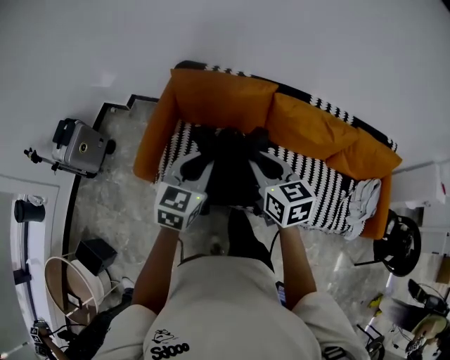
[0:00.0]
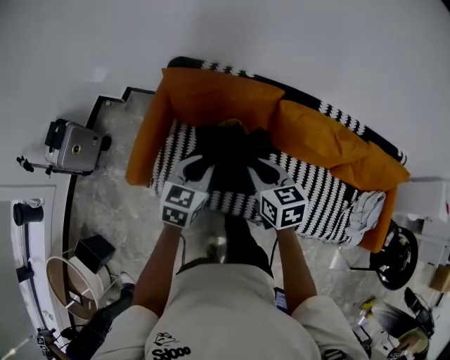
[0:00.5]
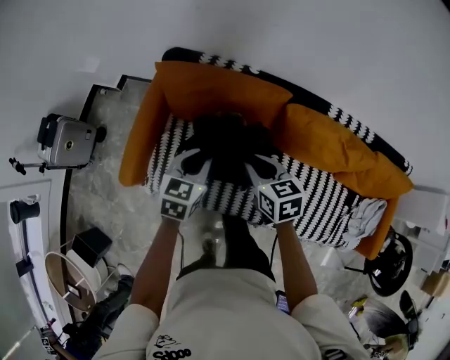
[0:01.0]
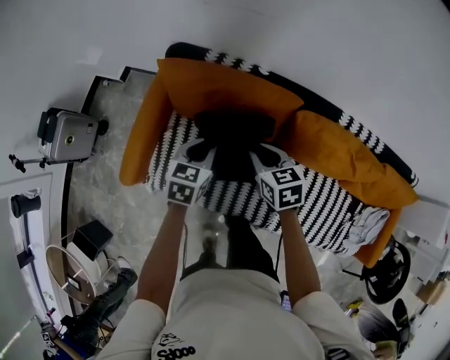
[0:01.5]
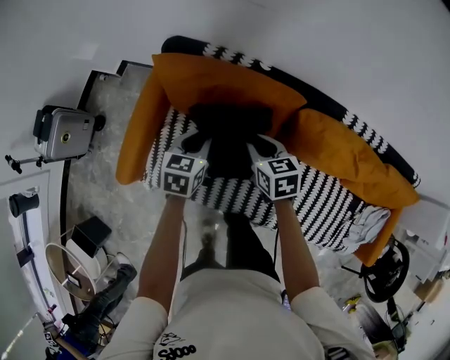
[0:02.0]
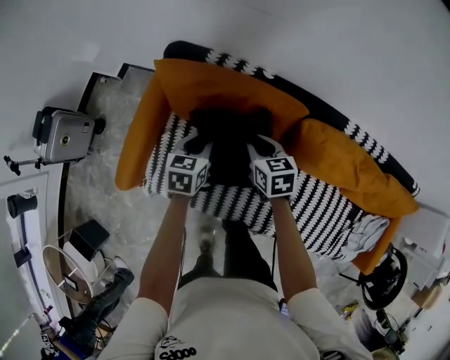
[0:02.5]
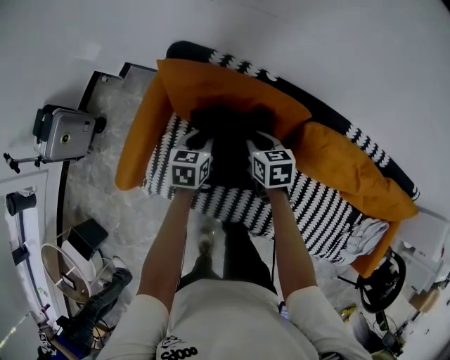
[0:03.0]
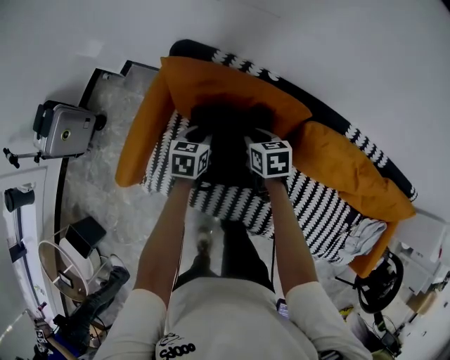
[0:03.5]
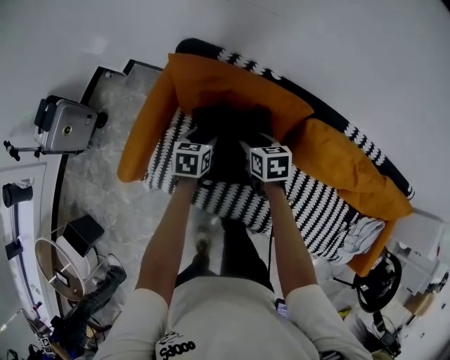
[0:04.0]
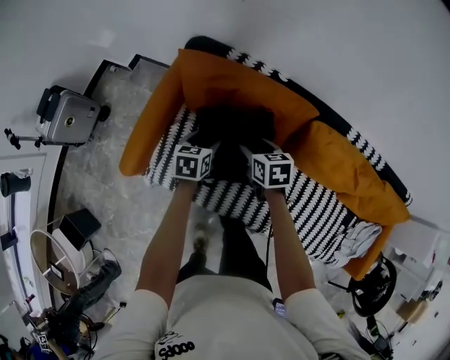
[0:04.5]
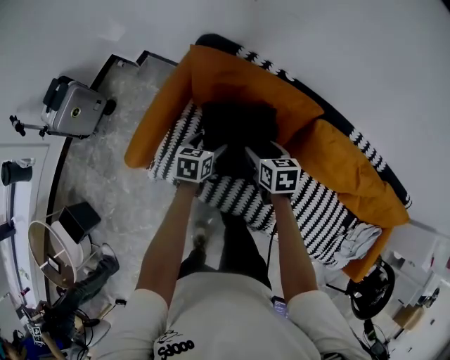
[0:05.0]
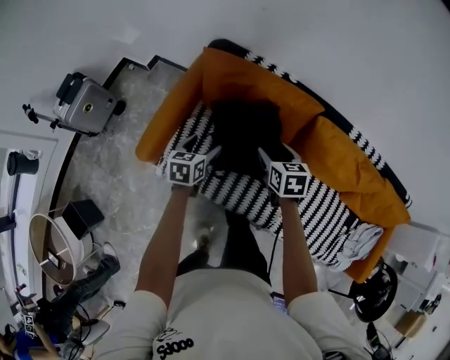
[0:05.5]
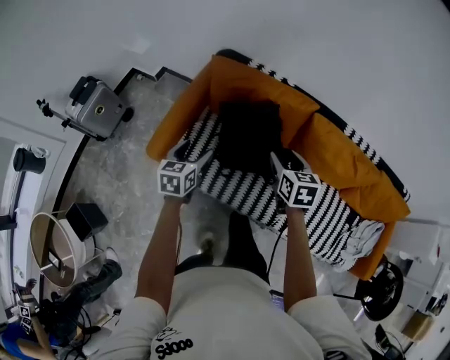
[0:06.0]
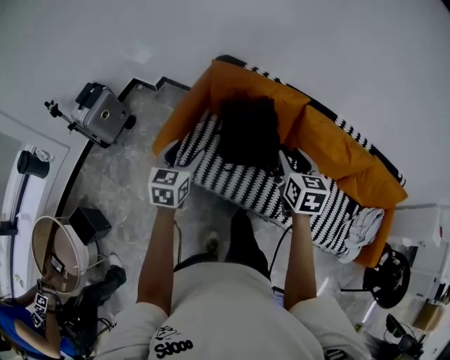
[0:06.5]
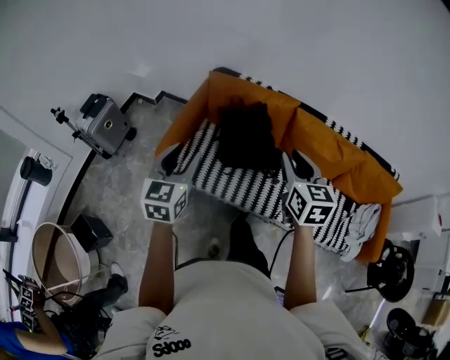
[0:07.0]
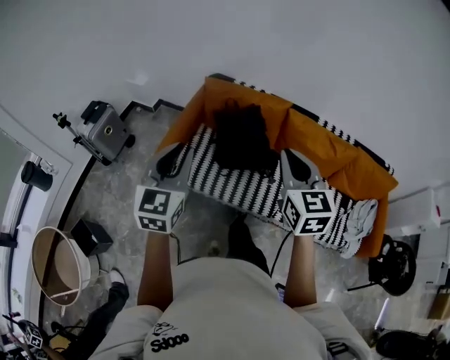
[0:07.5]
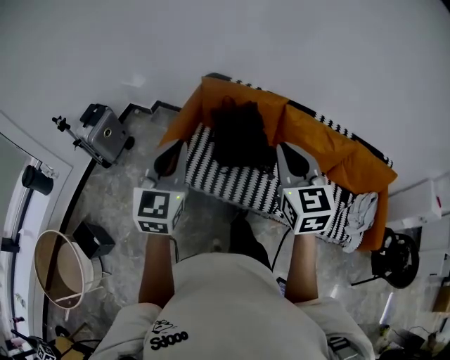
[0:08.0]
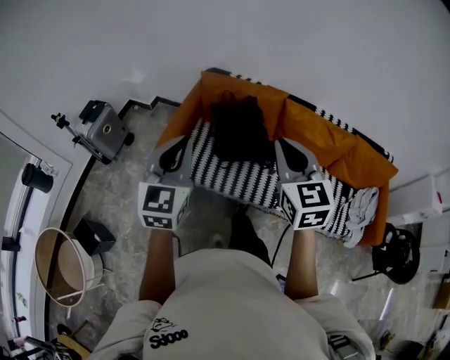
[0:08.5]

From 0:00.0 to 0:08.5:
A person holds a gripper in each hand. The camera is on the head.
From 0:00.0 to 0:02.0: Both grippers move forward and downward, approximately 35 cm. The left gripper swivels approximately 30 degrees.
From 0:02.0 to 0:04.0: The left gripper travels downward by some 5 cm, and opens its fingers. The right gripper changes place by approximately 5 cm, and opens up.
From 0:04.0 to 0:06.5: The left gripper is displaced backward, upward and to the left by some 40 cm, and changes its angle by approximately 30 degrees. Meanwhile the right gripper shifts about 35 cm backward and upward, and rotates about 30 degrees.
From 0:06.5 to 0:08.5: The left gripper heads upward and backward, covering approximately 25 cm, turns by some 30 degrees, and closes up. The right gripper goes roughly 25 cm backward and upward, changes its angle by about 20 degrees, and closes up.

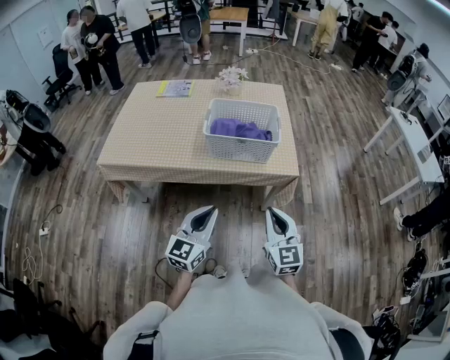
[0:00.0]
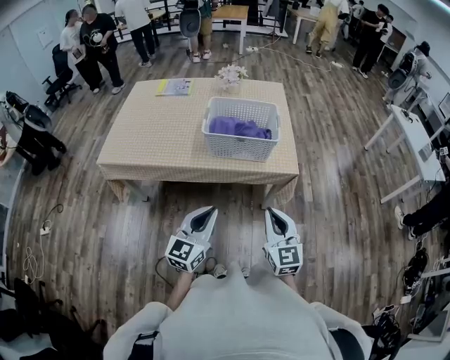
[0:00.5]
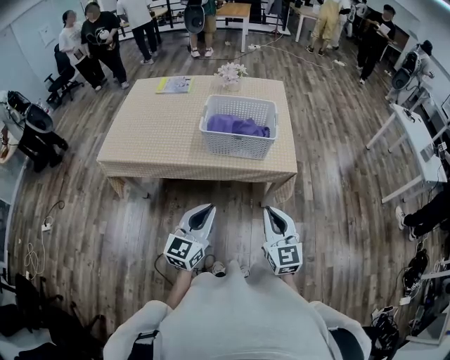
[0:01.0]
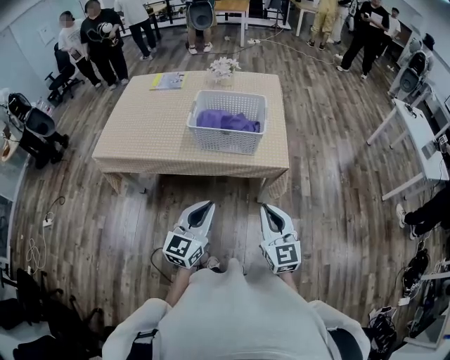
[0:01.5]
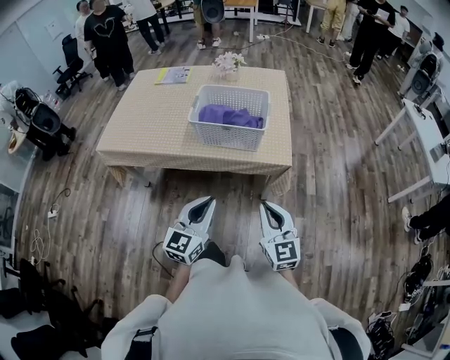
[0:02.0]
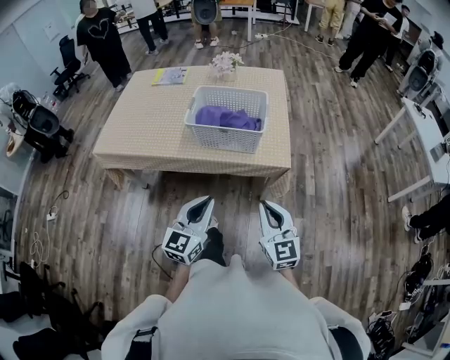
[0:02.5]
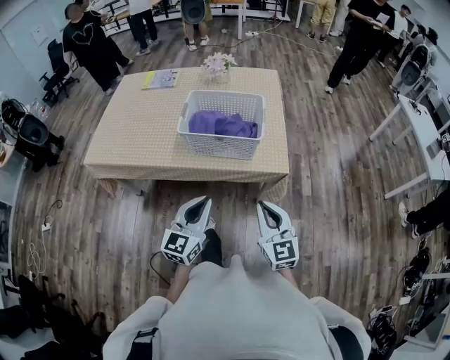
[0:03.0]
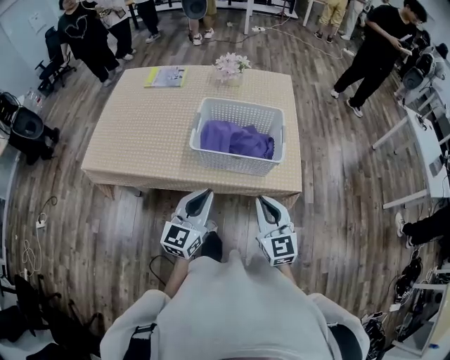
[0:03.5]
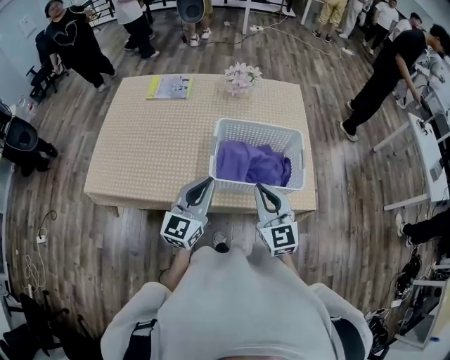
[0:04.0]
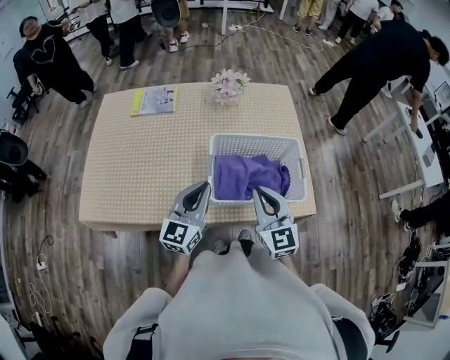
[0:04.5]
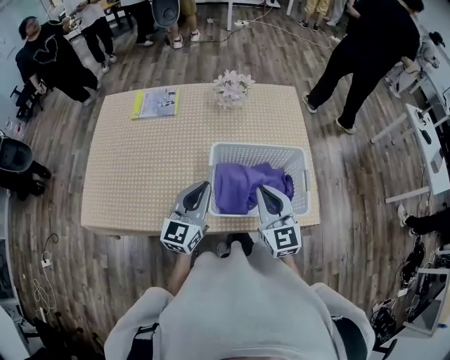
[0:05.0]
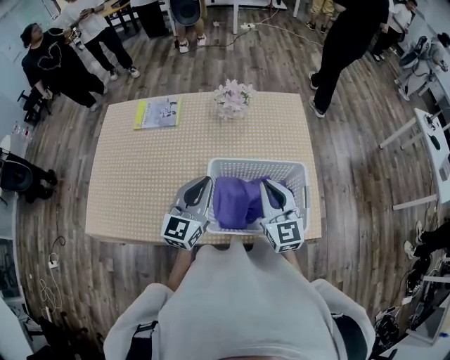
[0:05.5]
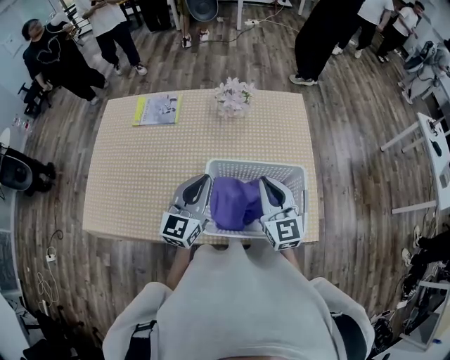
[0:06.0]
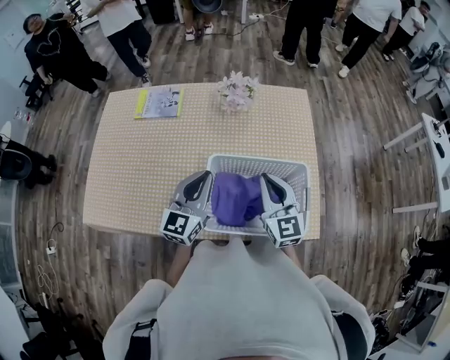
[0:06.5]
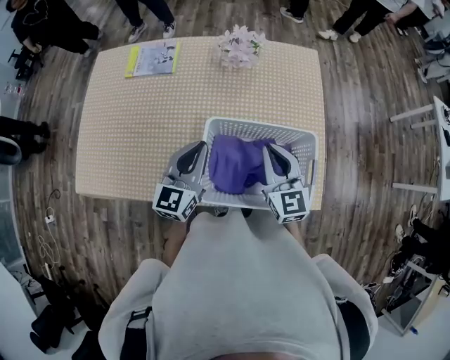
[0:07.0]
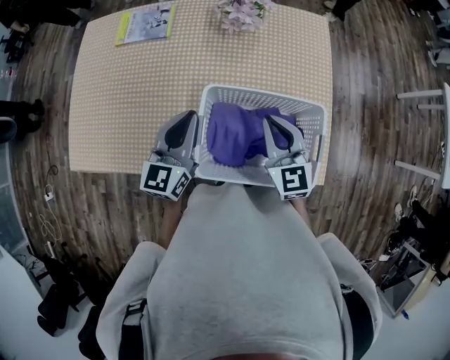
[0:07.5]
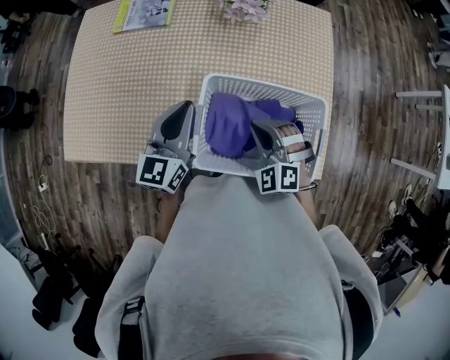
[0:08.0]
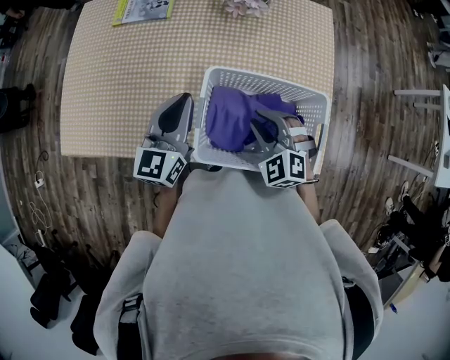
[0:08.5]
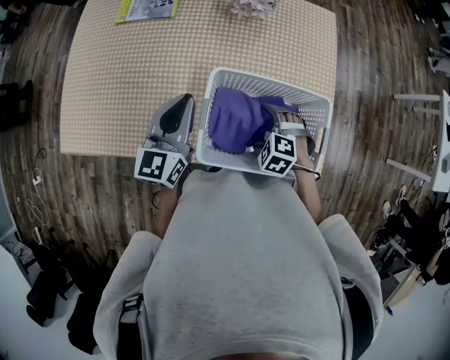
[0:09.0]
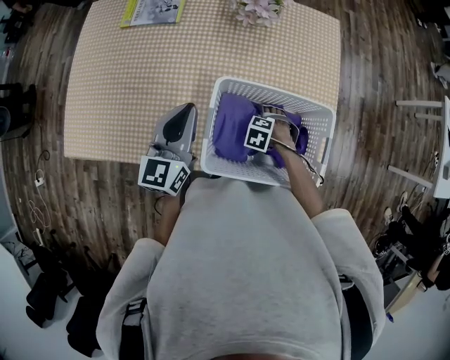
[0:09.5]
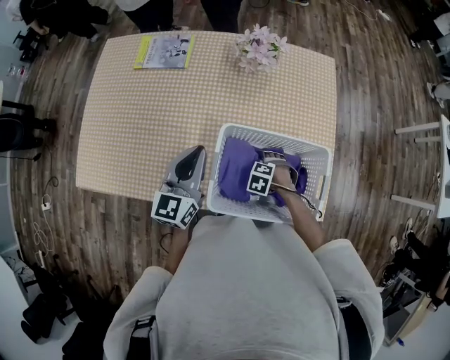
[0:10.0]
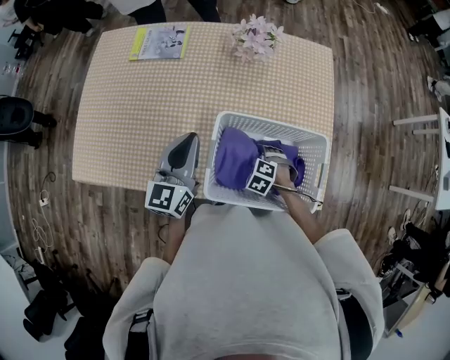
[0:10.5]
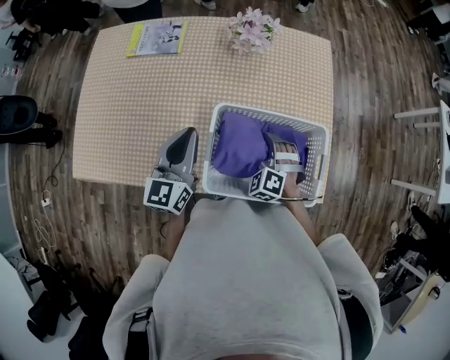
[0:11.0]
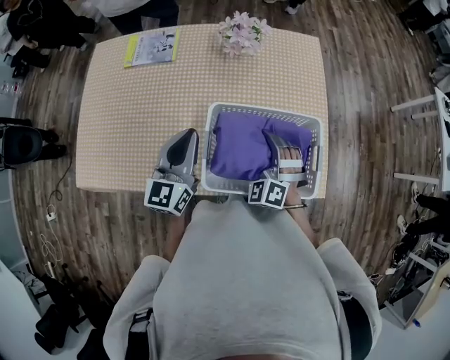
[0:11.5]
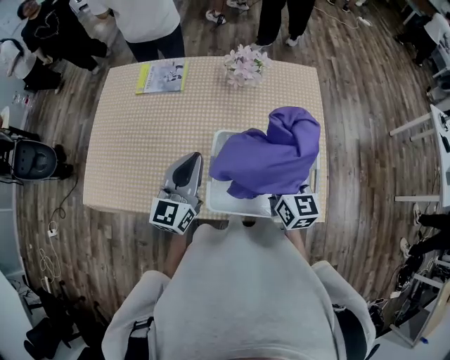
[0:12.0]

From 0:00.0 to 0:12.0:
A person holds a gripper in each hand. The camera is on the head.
From 0:00.0 to 0:02.0: Both grippers move to the right, about 10 cm.
From 0:02.0 to 0:04.0: Both grippers move forward and to the left, about 35 cm.
From 0:04.0 to 0:06.0: The grippers both shift forward by some 20 cm.
From 0:06.0 to 0:08.0: The right gripper is displaced downward by about 10 cm, and rolls counterclockwise, seen from behind, by about 50 degrees; the left gripper moves some 5 cm.
From 0:08.0 to 0:10.0: The right gripper travels downward by approximately 20 cm, points its fingers some 50 degrees further downward, and opens up.
From 0:10.0 to 0:12.0: The right gripper travels upward by approximately 30 cm, tips its fingers upward by about 70 degrees, and closes. Meanwhile the left gripper ends up approximately 5 cm from where it was.

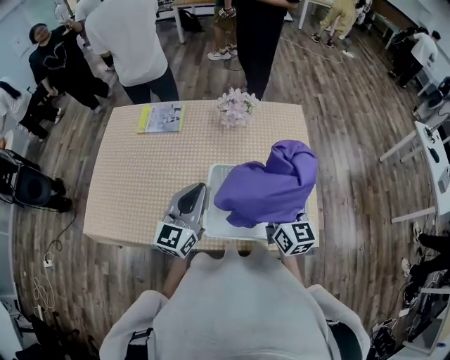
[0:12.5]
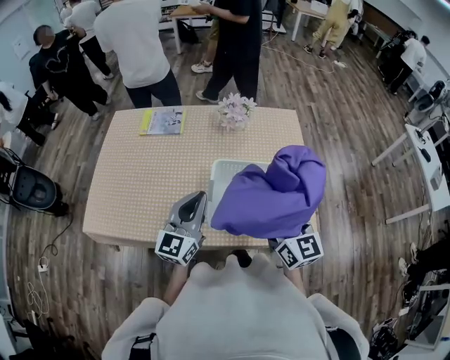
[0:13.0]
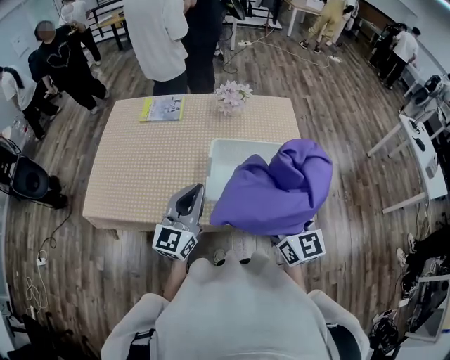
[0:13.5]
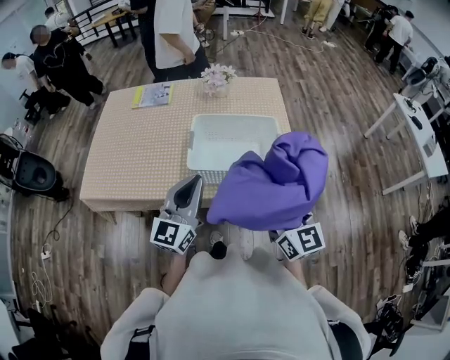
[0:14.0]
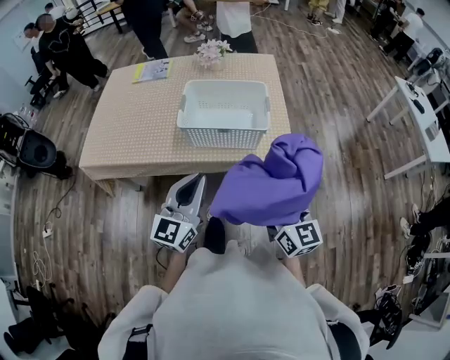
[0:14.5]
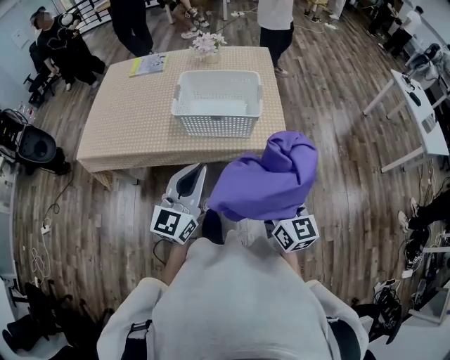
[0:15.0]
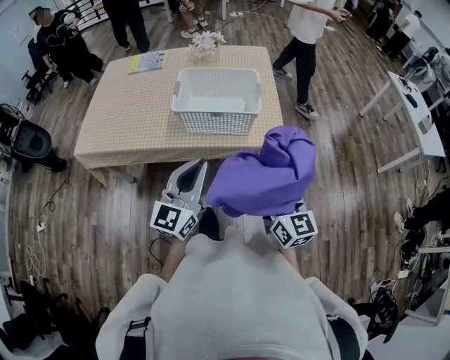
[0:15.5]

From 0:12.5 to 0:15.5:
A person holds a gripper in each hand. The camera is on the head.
From 0:12.5 to 0:14.0: Both grippers move backward, roughly 25 cm.
From 0:14.0 to 0:15.5: The right gripper shifts about 20 cm backward, downward and to the right. The left gripper moves backward and to the right, some 20 cm.

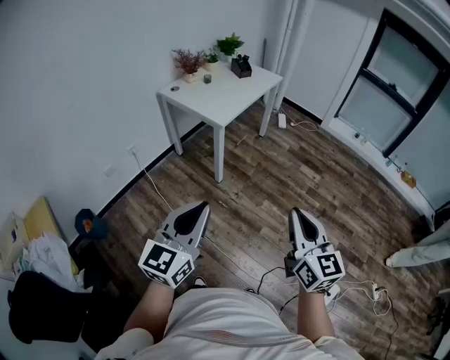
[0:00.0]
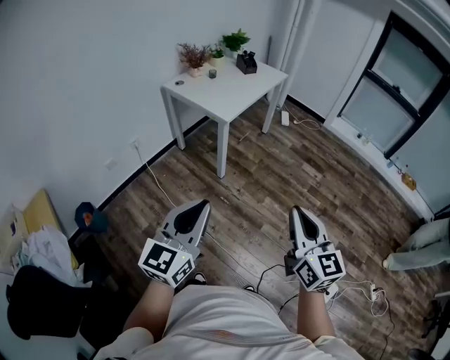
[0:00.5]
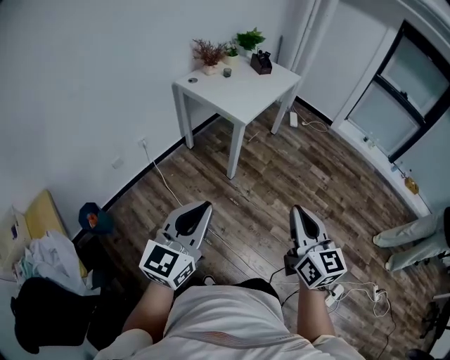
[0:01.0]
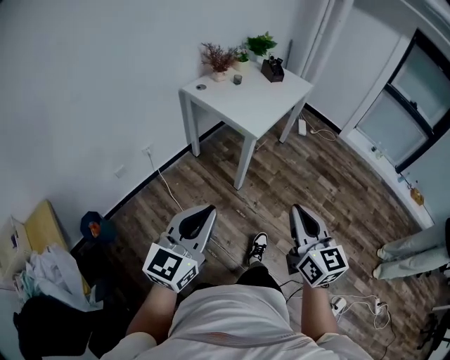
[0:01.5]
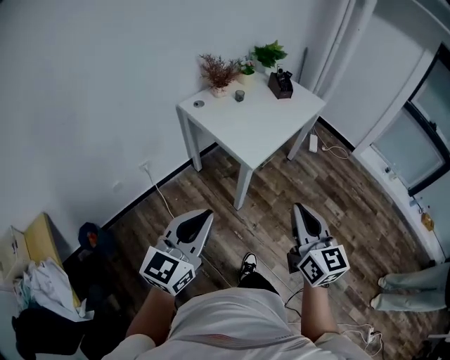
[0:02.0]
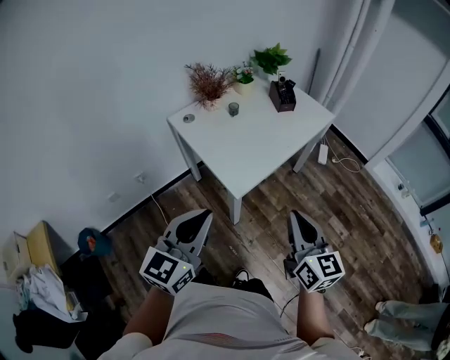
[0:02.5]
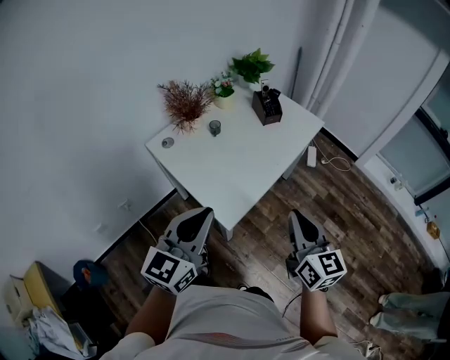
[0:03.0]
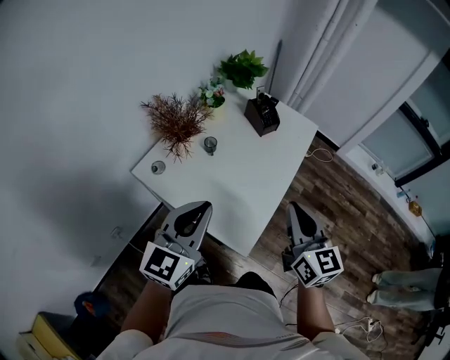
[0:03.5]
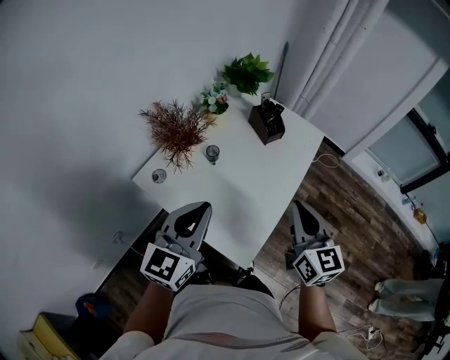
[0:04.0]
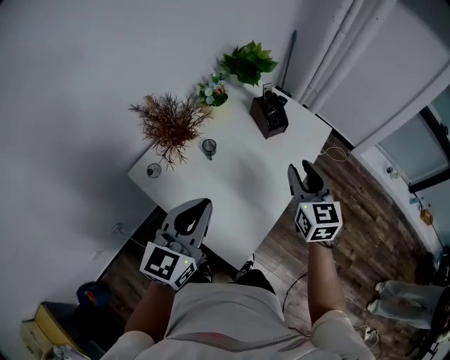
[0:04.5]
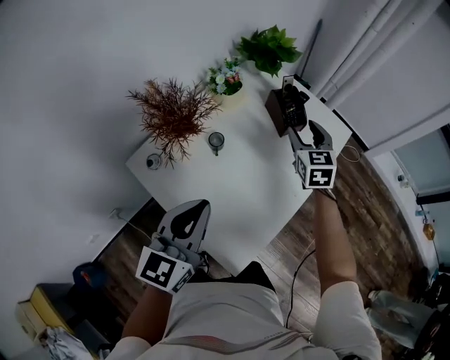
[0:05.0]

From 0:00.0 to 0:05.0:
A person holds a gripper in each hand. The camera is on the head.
From 0:00.0 to 0:02.5: The two grippers travel together, forward, about 50 cm.
From 0:02.5 to 0:05.0: The left gripper is displaced forward by roughly 35 cm; the right gripper goes some 60 cm forward, changes its angle by about 30 degrees, and opens up.
